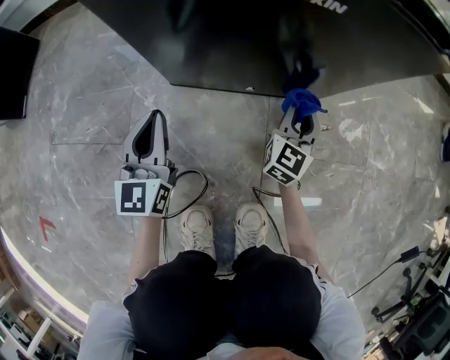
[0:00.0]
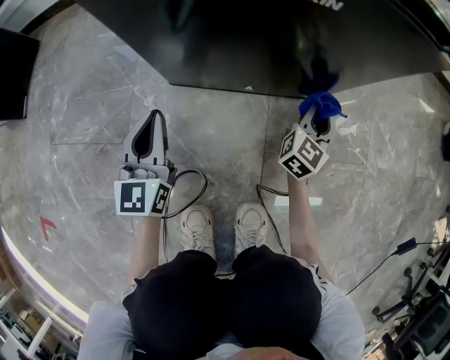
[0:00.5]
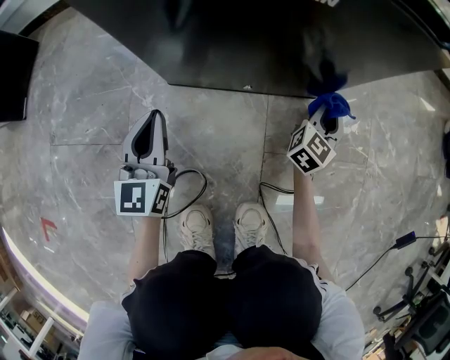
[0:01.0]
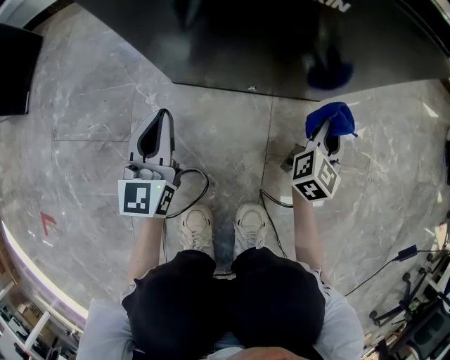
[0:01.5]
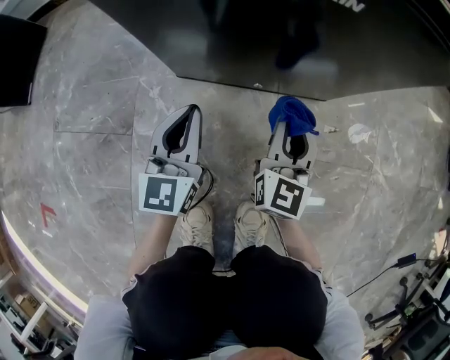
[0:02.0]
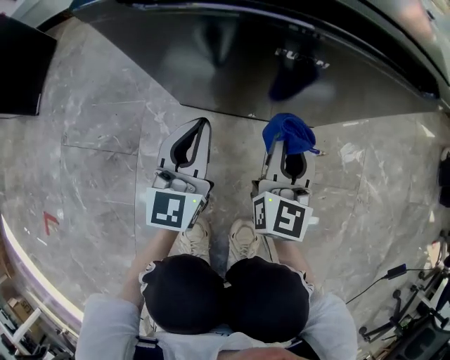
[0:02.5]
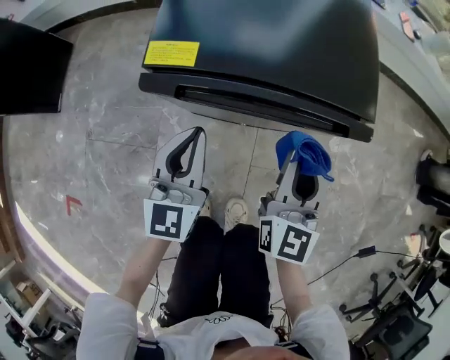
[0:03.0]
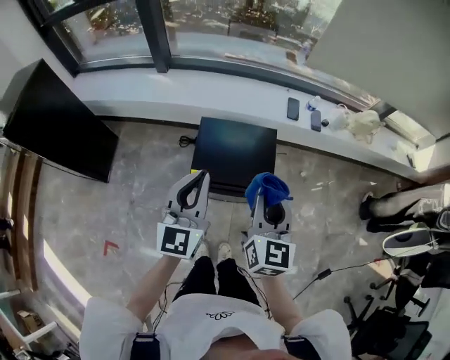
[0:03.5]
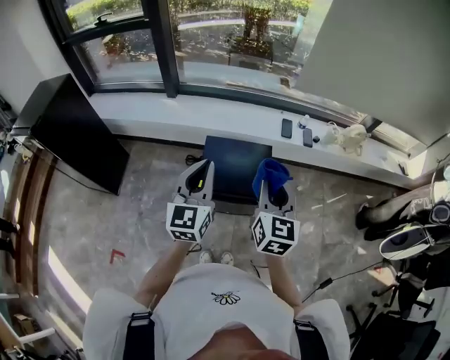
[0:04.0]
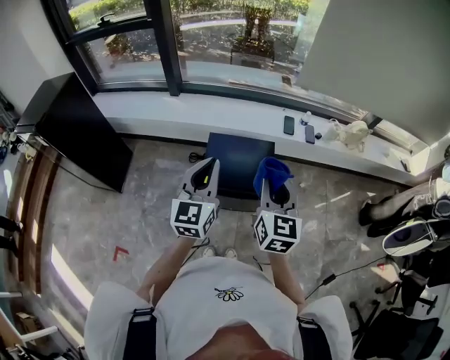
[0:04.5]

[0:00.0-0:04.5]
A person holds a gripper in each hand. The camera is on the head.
0:00.0 to 0:02.0: The left gripper moves to the right, roughly 5 cm. The right gripper goes some 5 cm backward, and moves some 10 cm to the right and comes back.
0:02.0 to 0:04.5: The two grippers go approximately 90 cm upward.

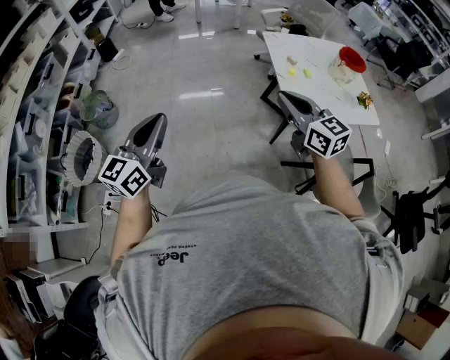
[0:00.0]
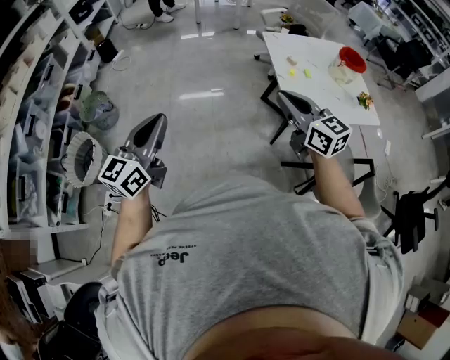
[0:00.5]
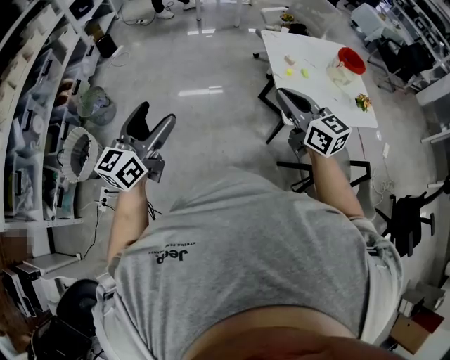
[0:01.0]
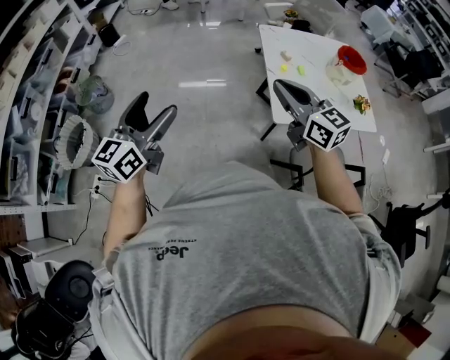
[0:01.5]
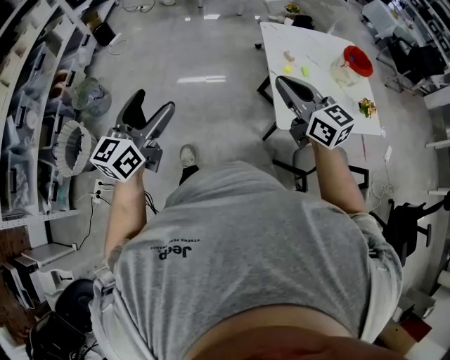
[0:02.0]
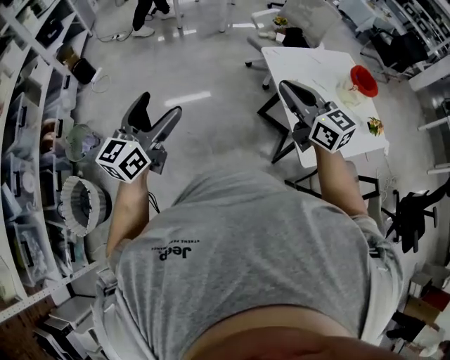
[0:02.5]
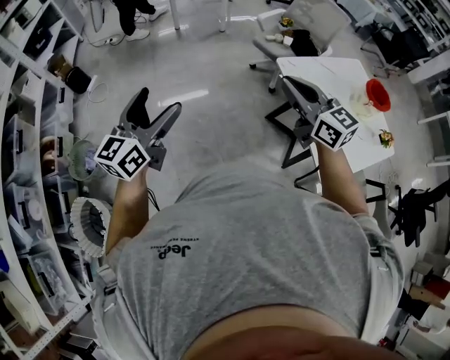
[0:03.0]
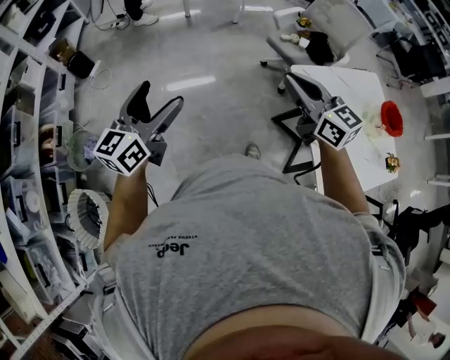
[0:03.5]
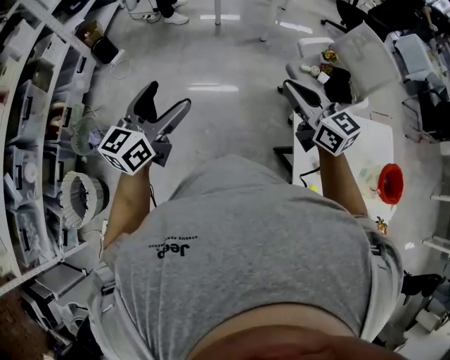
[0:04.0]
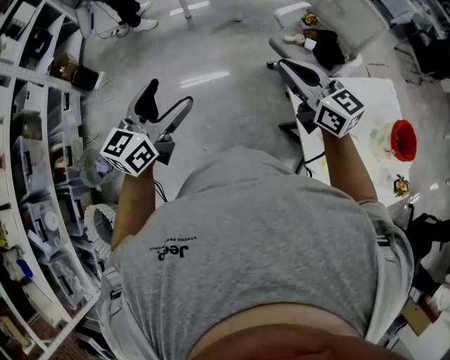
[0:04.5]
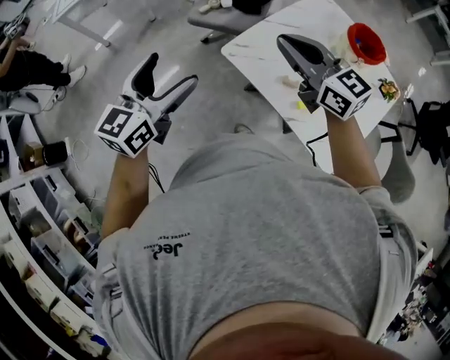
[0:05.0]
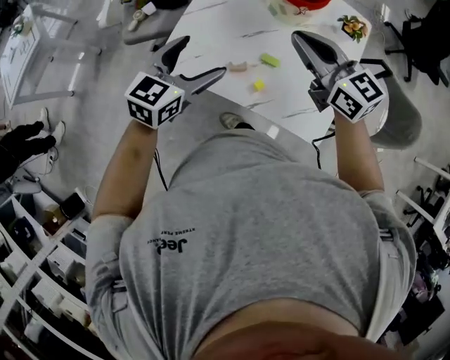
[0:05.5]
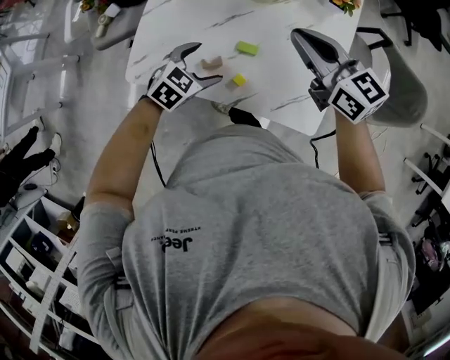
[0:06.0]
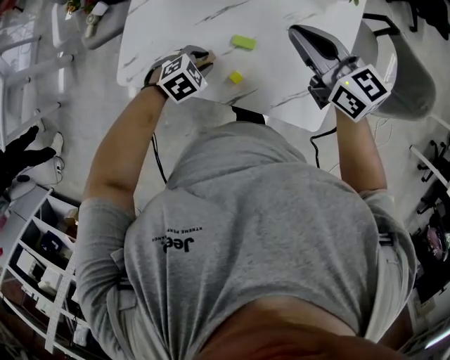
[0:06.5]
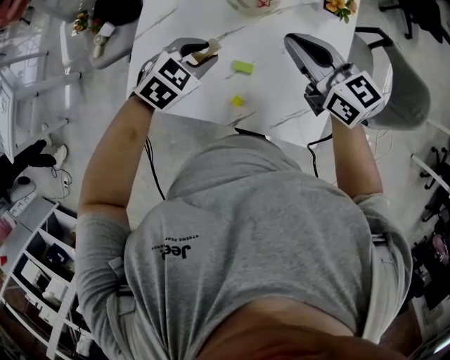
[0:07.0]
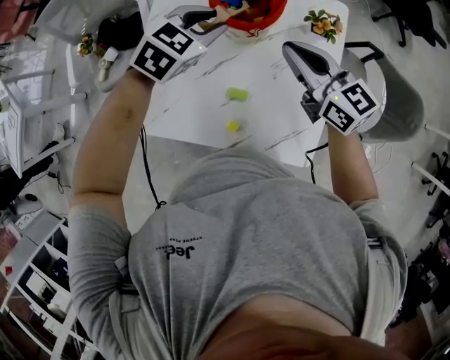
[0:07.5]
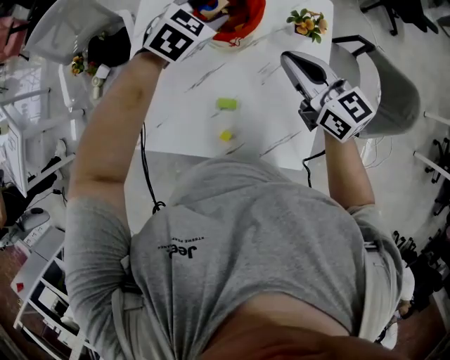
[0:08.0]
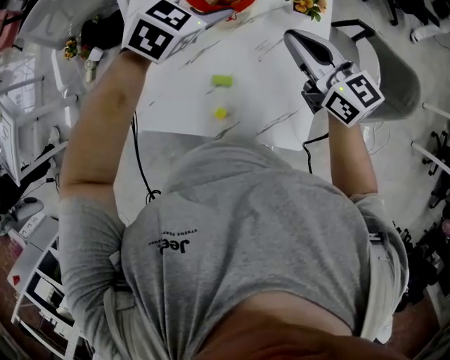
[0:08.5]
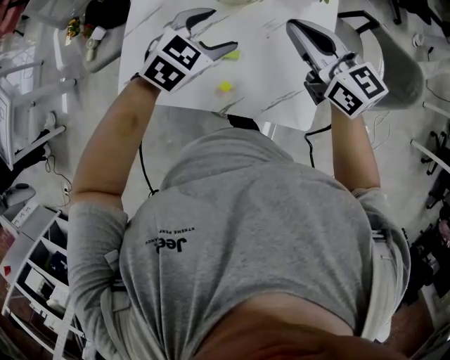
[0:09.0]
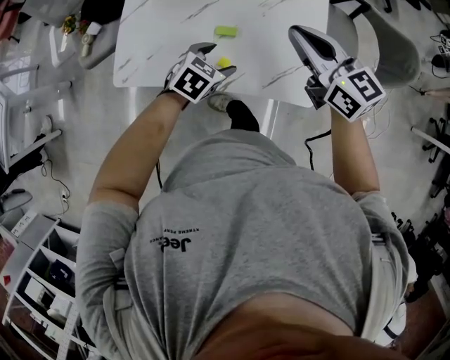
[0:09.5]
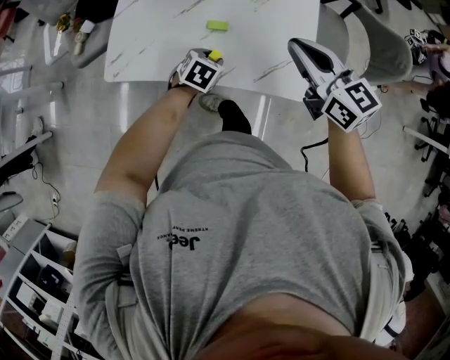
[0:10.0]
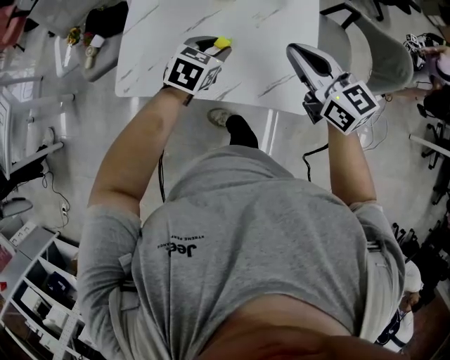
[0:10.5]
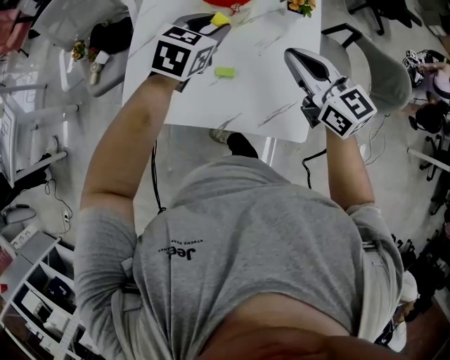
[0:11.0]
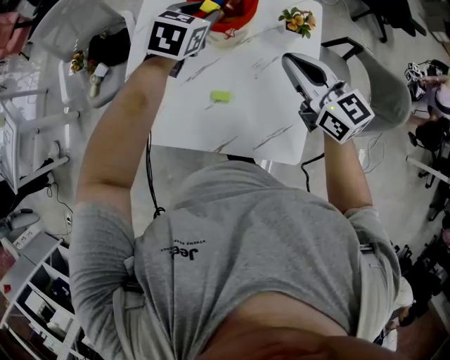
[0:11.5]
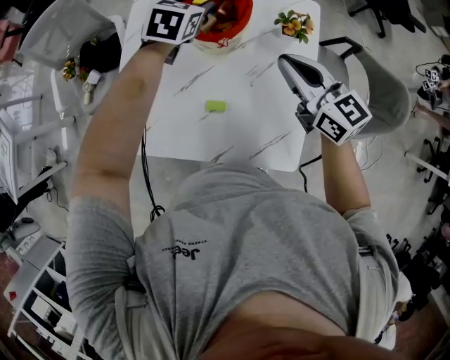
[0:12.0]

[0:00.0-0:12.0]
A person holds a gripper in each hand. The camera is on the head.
0:00.0 to 0:02.0: The grippers both shift forward and to the right by about 10 cm. The left gripper opens.
0:02.0 to 0:04.0: The pair of grippers is taken forward, approximately 60 cm.
0:04.0 to 0:06.0: Both grippers are carried roughly 50 cm. The right gripper rotates about 70 degrees, while the left gripper points its fingers roughly 50 degrees further downward.
0:06.0 to 0:08.0: The left gripper is displaced forward and upward by approximately 35 cm, and closes. The right gripper heads forward and to the right, covering some 10 cm.
0:08.0 to 0:10.0: The right gripper moves backward, approximately 25 cm; the left gripper is displaced backward and downward by about 40 cm, and changes its angle by approximately 30 degrees.
0:10.0 to 0:12.0: The left gripper travels forward and upward by approximately 40 cm. Meanwhile the right gripper shifts approximately 20 cm forward.

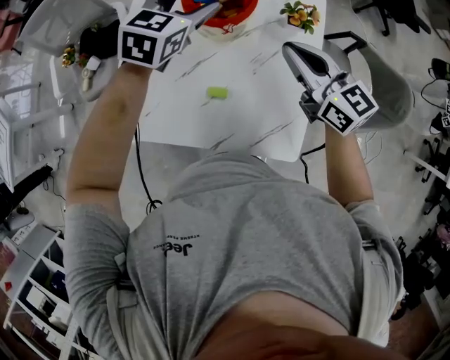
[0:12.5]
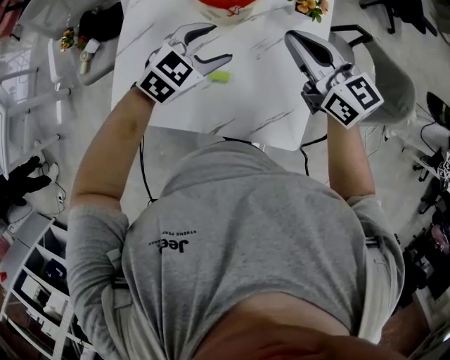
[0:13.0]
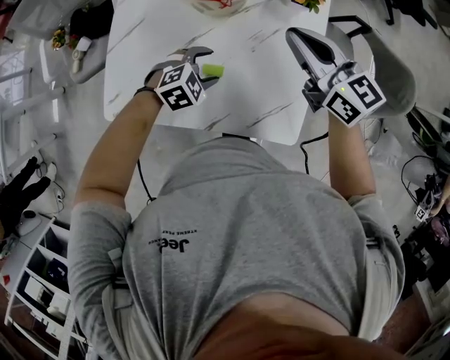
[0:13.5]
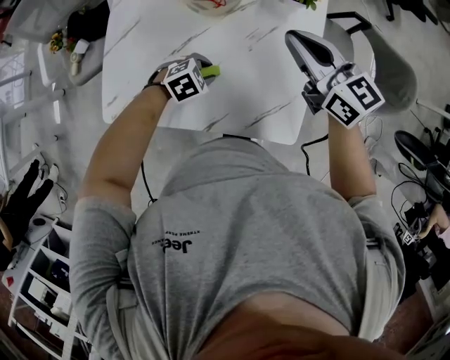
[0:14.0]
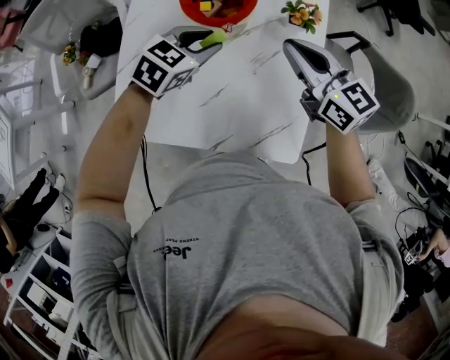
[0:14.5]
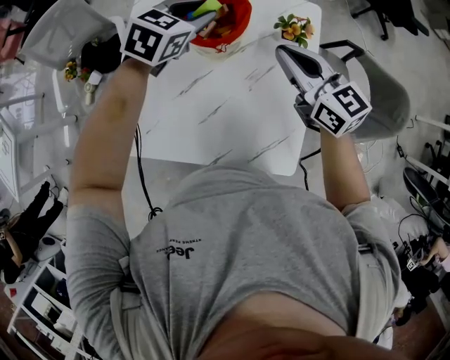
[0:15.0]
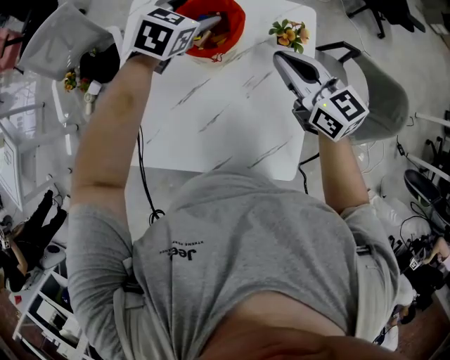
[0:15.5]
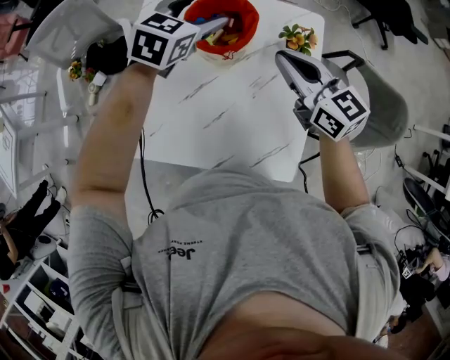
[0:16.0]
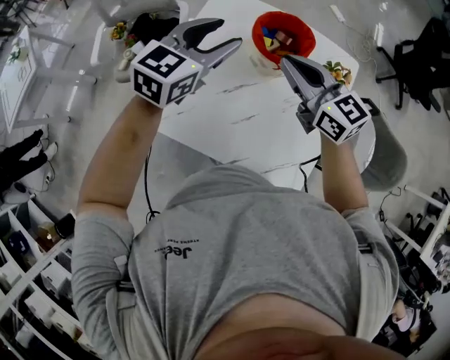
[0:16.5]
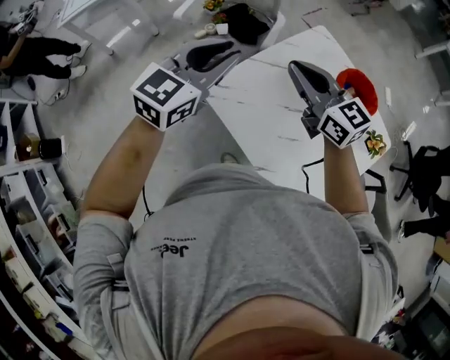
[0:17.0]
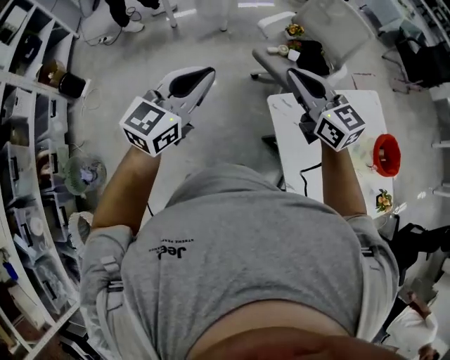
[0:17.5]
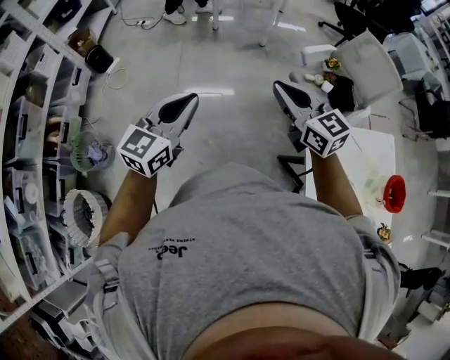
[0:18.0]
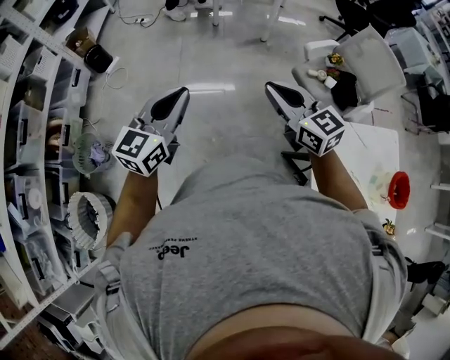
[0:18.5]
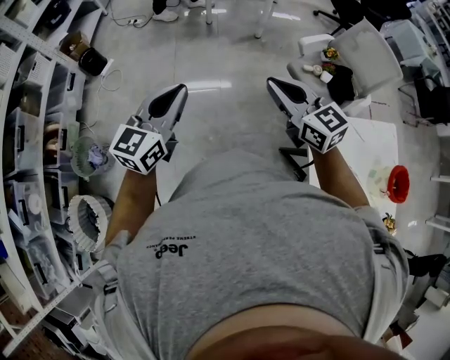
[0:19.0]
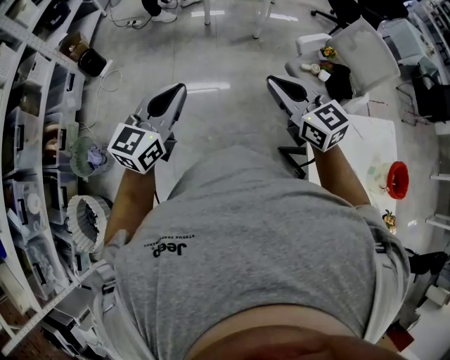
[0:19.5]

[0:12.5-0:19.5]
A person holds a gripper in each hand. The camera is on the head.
0:12.5 to 0:14.5: The left gripper moves some 25 cm downward and comes back, and swivels approximately 20 degrees.
0:14.5 to 0:16.0: The left gripper heads forward and upward, covering approximately 15 cm, and opens its fingers.
0:16.0 to 0:17.5: Both grippers are carried about 60 cm. The left gripper turns by some 70 degrees, and closes, while the right gripper rotates approximately 60 degrees.
0:17.5 to 0:19.5: Both grippers travel together to the left, about 25 cm. The left gripper rotates some 20 degrees.

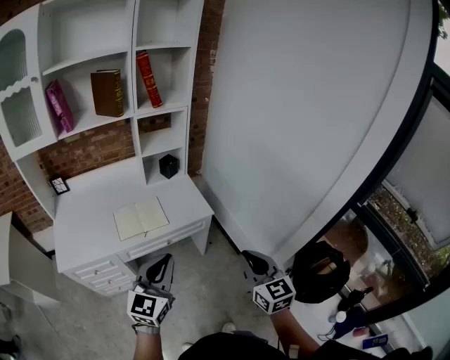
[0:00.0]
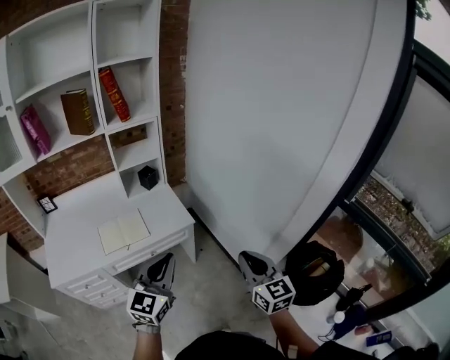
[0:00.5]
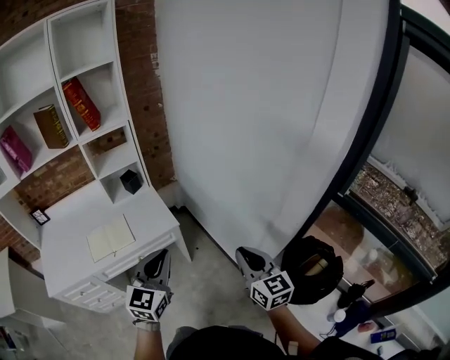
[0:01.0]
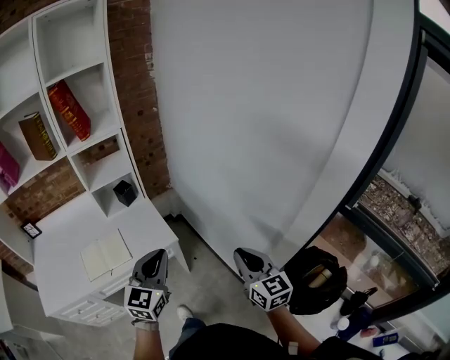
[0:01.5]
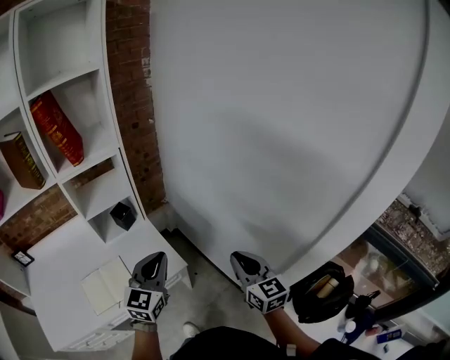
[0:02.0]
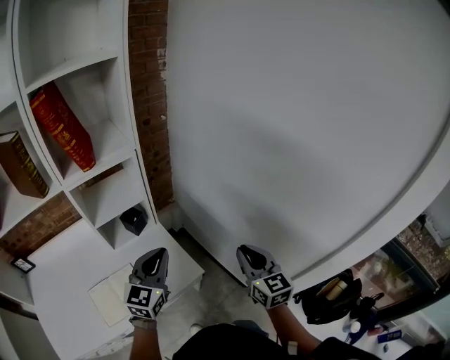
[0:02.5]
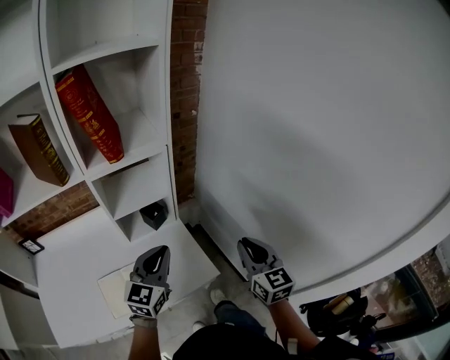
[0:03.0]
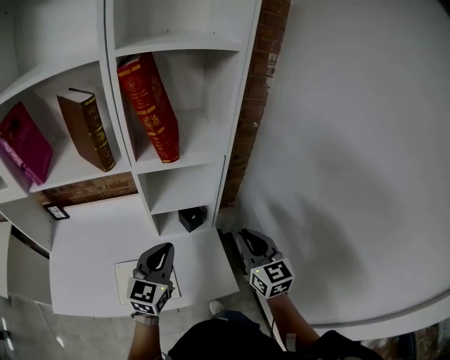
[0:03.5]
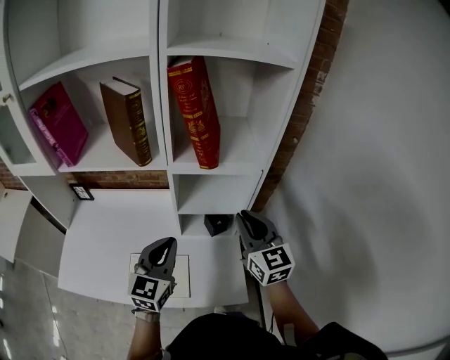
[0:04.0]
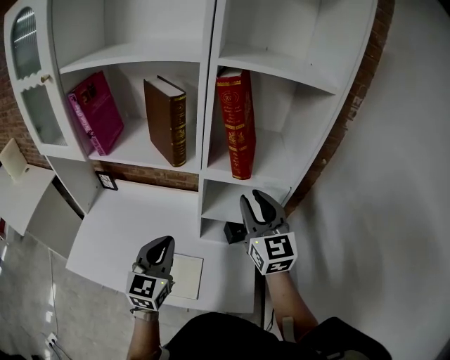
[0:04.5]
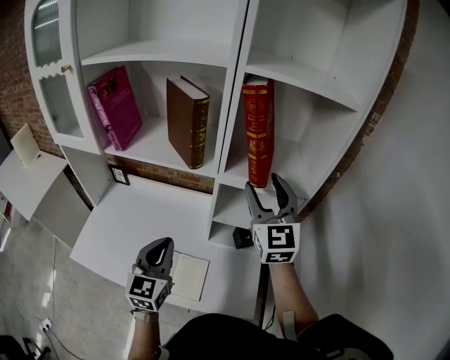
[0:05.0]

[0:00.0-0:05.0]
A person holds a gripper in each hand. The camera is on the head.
0:00.0 to 0:02.5: Both grippers move forward, some 40 cm.
0:02.5 to 0:05.0: The left gripper moves approximately 30 cm, and changes its angle by roughly 50 degrees, while the right gripper changes place by approximately 50 cm, turns by about 50 degrees, and opens up.
